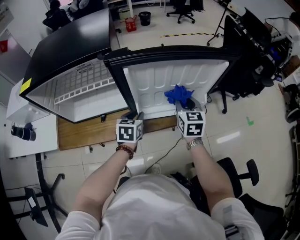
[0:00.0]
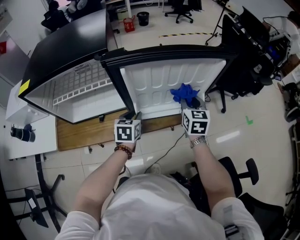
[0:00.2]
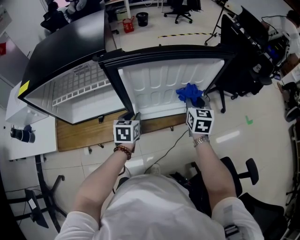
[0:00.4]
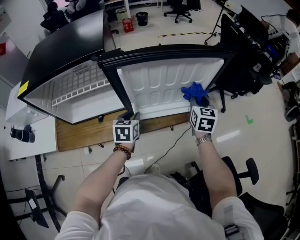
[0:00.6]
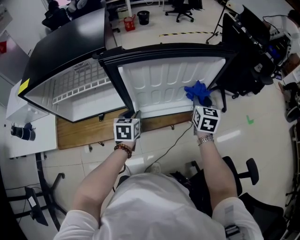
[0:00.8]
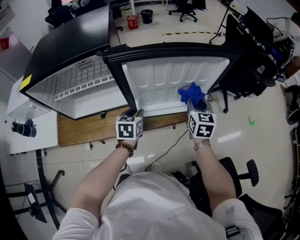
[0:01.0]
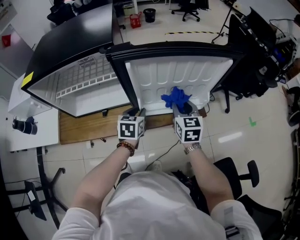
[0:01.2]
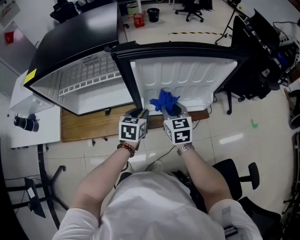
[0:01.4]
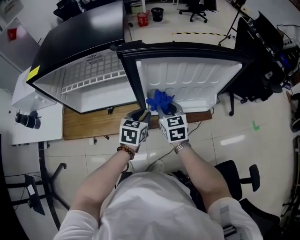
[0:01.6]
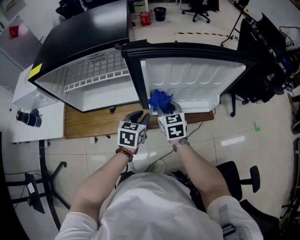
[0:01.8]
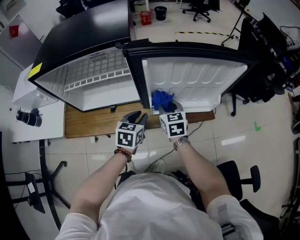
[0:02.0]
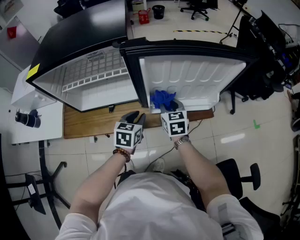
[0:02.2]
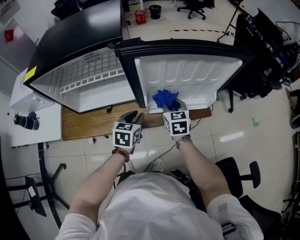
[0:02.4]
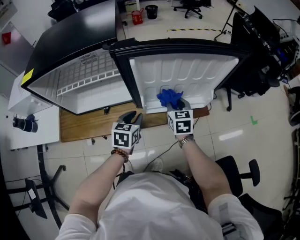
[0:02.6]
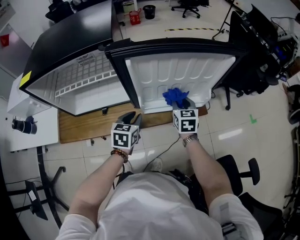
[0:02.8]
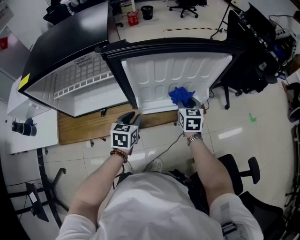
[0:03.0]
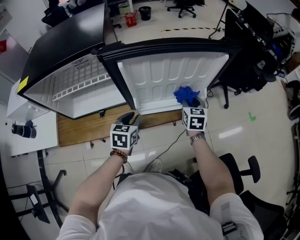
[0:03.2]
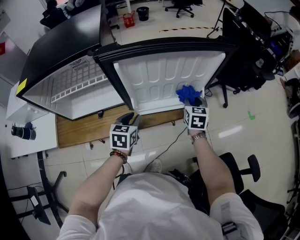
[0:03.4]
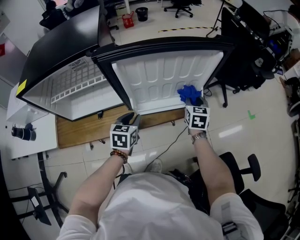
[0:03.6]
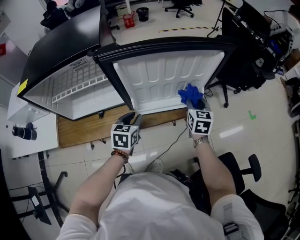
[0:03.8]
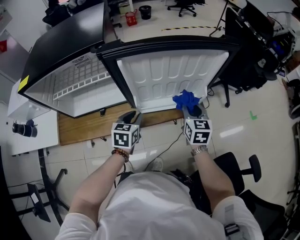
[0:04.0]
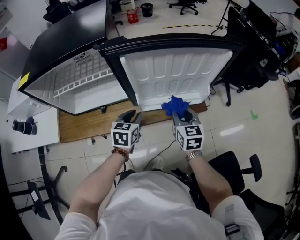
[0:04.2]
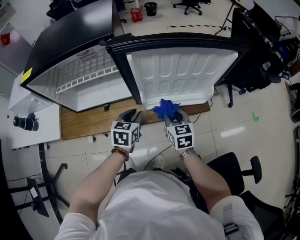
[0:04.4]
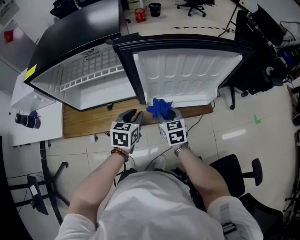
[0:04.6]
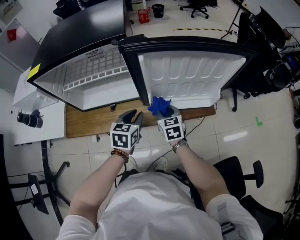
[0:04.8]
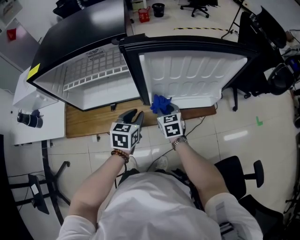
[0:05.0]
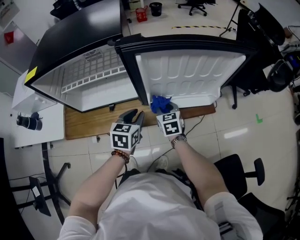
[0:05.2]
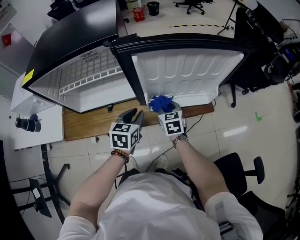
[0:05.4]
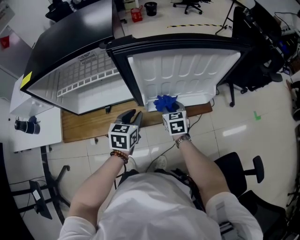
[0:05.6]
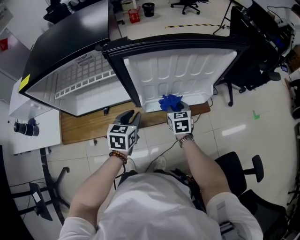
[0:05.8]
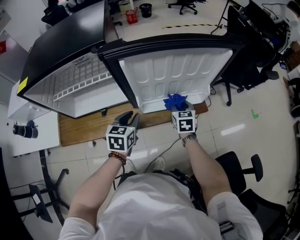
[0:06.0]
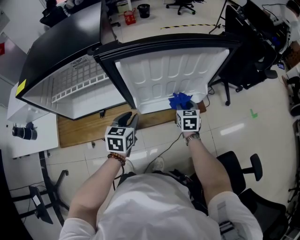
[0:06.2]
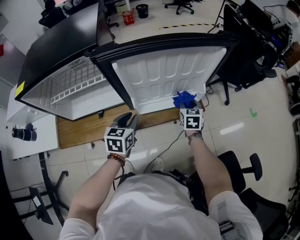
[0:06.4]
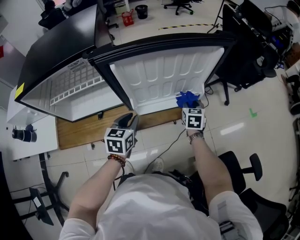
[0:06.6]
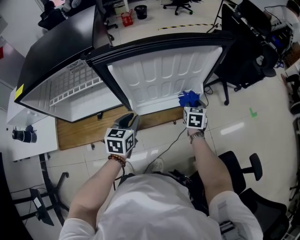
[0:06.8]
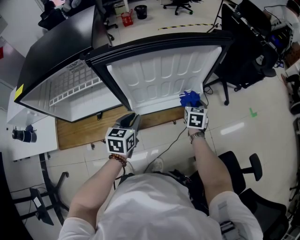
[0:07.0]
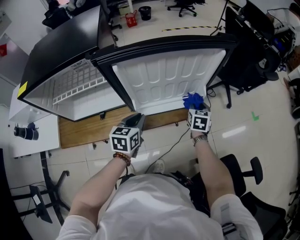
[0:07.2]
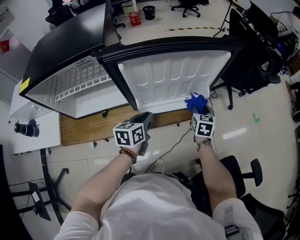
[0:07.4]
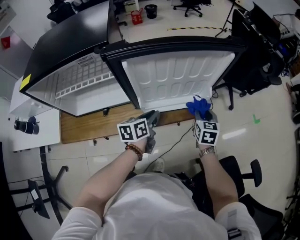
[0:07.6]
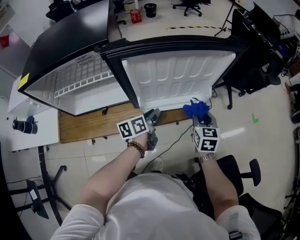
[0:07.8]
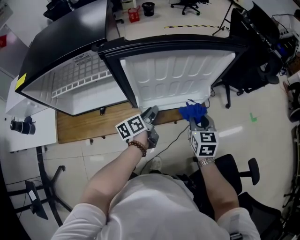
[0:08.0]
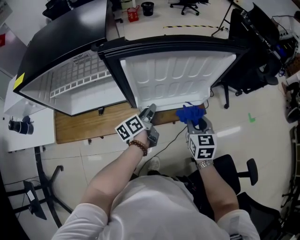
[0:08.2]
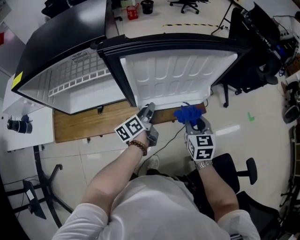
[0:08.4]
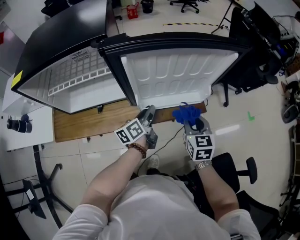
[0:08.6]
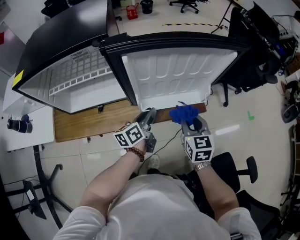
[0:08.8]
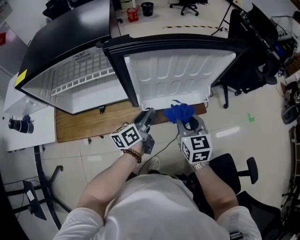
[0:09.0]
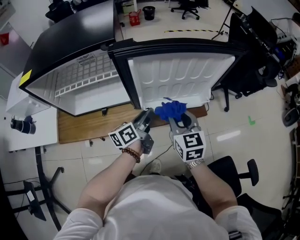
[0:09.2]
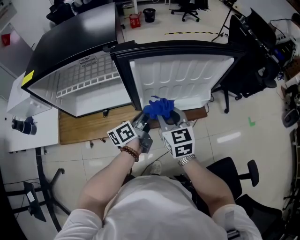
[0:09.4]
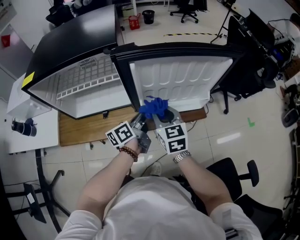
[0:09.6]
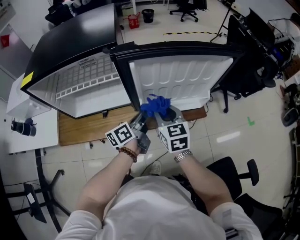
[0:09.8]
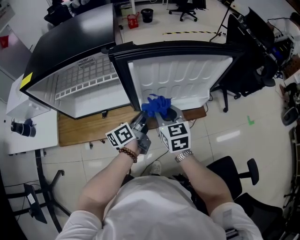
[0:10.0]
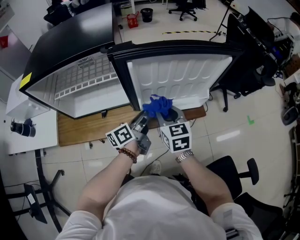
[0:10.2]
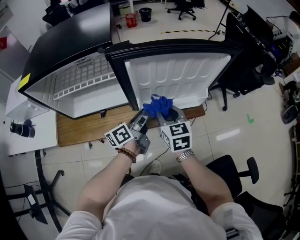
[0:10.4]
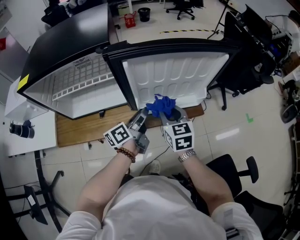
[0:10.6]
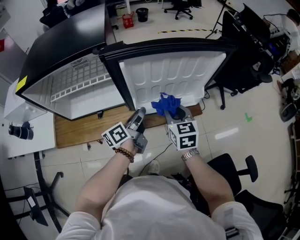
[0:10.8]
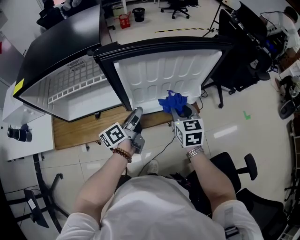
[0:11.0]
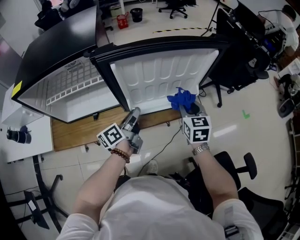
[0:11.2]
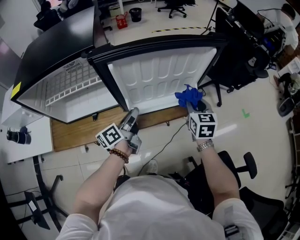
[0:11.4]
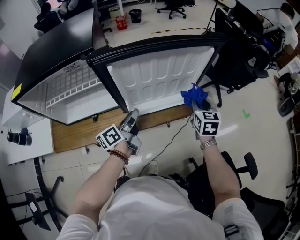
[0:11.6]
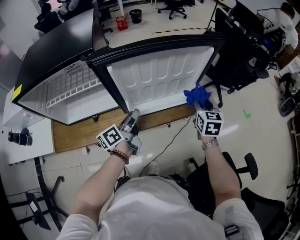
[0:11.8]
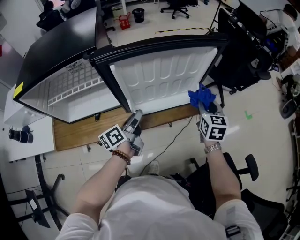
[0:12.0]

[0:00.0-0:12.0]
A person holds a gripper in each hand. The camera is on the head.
0:00.0 to 0:01.6: The right gripper travels to the left by about 10 cm.
0:01.6 to 0:03.0: The right gripper is displaced to the right by about 15 cm.
0:03.0 to 0:04.4: The right gripper travels backward and to the left by approximately 15 cm.
0:04.4 to 0:06.0: The right gripper shifts approximately 10 cm forward and to the right.
0:06.0 to 0:07.6: Both grippers travel together to the right, some 10 cm. The left gripper changes its angle by about 30 degrees.
0:07.6 to 0:09.0: The right gripper moves to the left, upward and backward, some 15 cm; the left gripper rotates approximately 20 degrees.
0:09.0 to 0:10.4: The right gripper heads to the left, covering some 10 cm.
0:10.4 to 0:12.0: The right gripper is displaced to the right by about 20 cm, and swivels some 20 degrees.

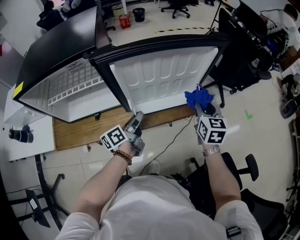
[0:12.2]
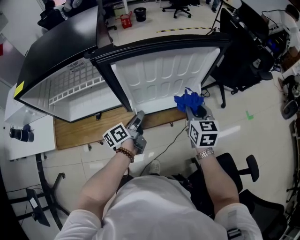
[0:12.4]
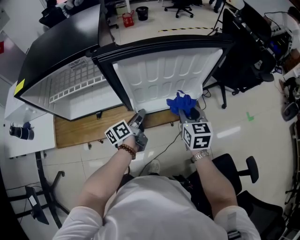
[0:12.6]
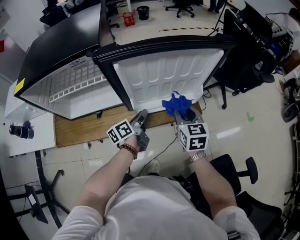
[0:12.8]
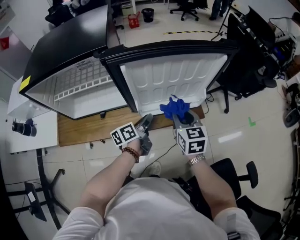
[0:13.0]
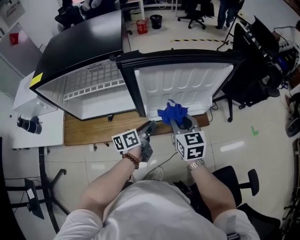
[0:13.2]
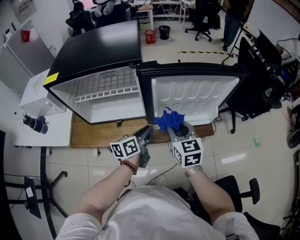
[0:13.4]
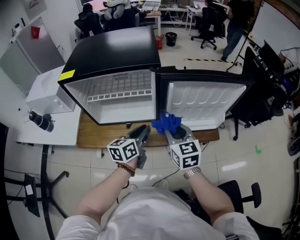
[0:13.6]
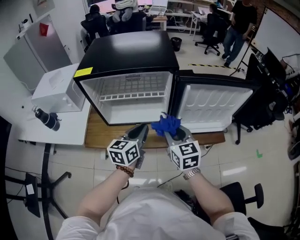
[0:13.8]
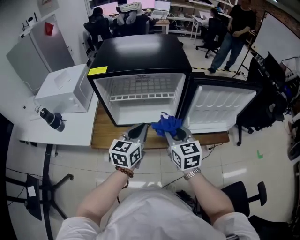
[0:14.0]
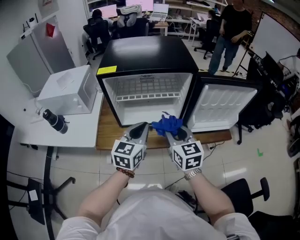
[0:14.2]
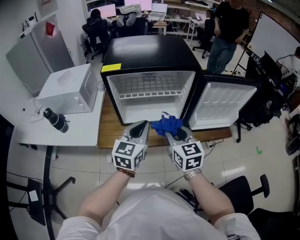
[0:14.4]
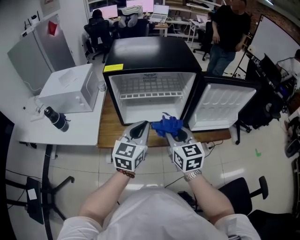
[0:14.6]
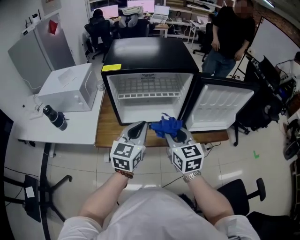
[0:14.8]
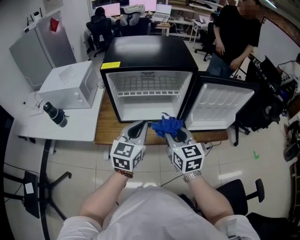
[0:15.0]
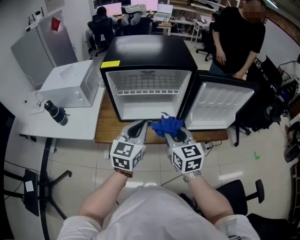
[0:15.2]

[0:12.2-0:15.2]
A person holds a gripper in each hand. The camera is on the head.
0:12.2 to 0:13.8: The right gripper travels to the left by some 35 cm, and rotates roughly 30 degrees; the left gripper shifts approximately 20 cm to the left, upward and backward, and rotates approximately 40 degrees.
0:13.8 to 0:15.2: The right gripper goes about 10 cm to the left and backward; the left gripper travels to the left, upward and backward by some 15 cm, and swivels approximately 20 degrees.

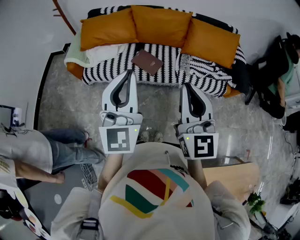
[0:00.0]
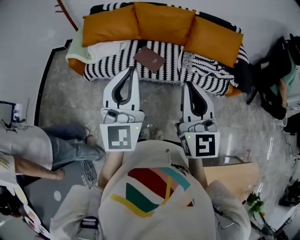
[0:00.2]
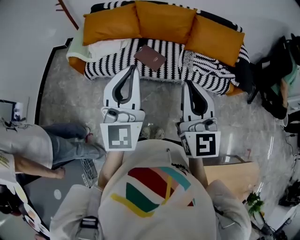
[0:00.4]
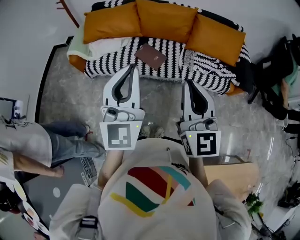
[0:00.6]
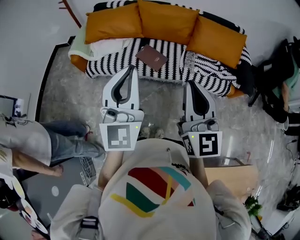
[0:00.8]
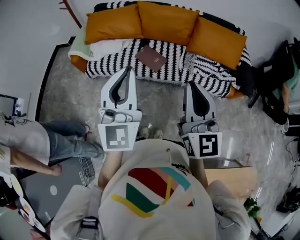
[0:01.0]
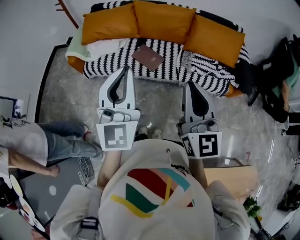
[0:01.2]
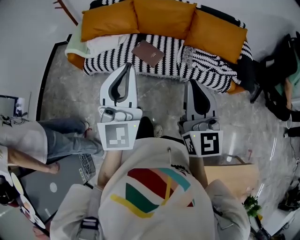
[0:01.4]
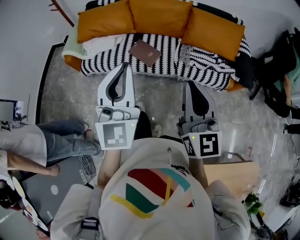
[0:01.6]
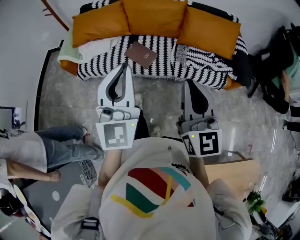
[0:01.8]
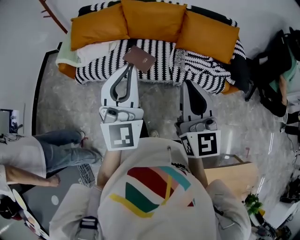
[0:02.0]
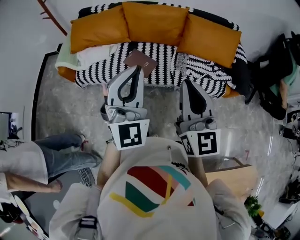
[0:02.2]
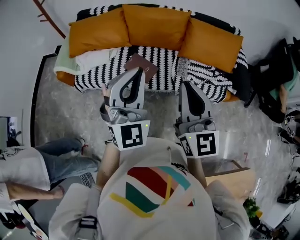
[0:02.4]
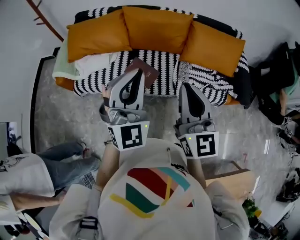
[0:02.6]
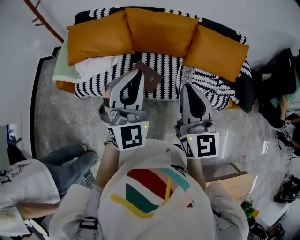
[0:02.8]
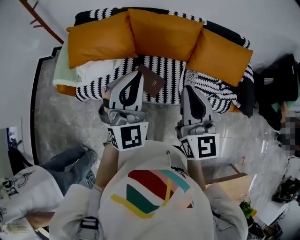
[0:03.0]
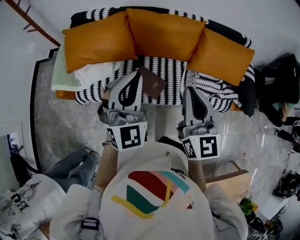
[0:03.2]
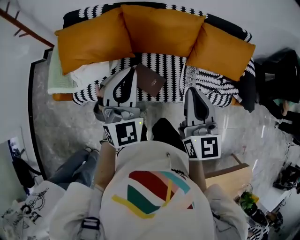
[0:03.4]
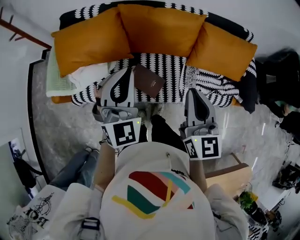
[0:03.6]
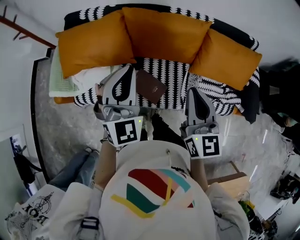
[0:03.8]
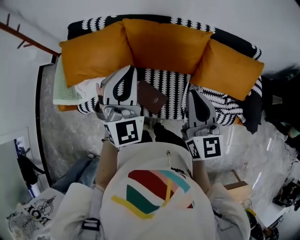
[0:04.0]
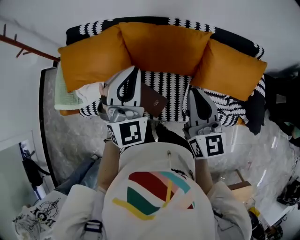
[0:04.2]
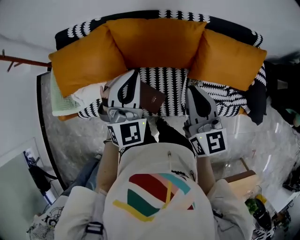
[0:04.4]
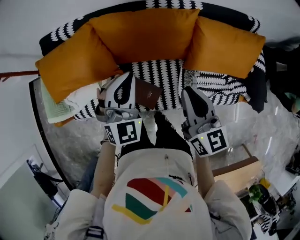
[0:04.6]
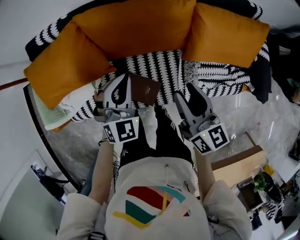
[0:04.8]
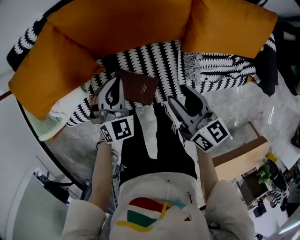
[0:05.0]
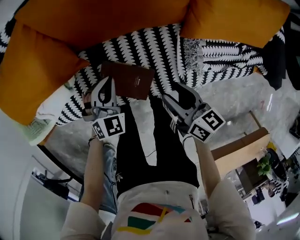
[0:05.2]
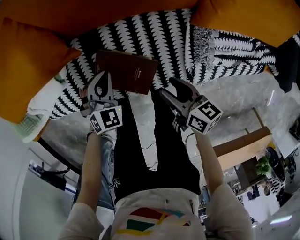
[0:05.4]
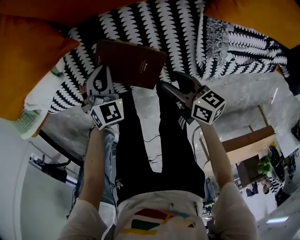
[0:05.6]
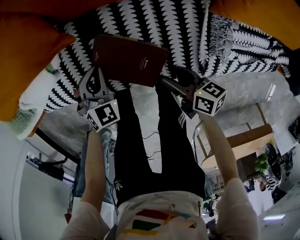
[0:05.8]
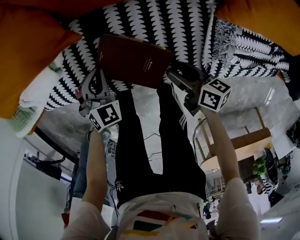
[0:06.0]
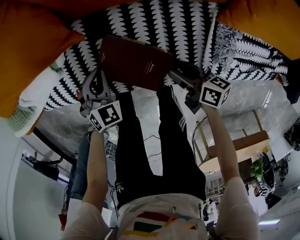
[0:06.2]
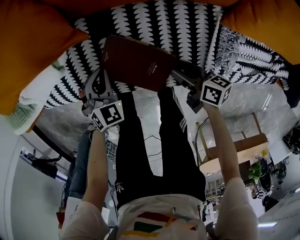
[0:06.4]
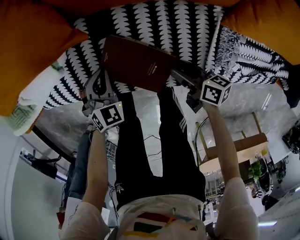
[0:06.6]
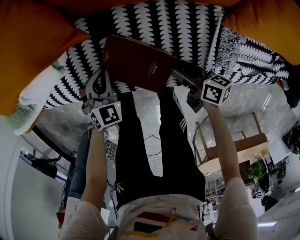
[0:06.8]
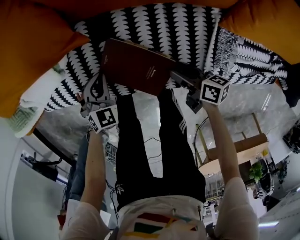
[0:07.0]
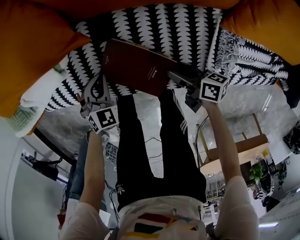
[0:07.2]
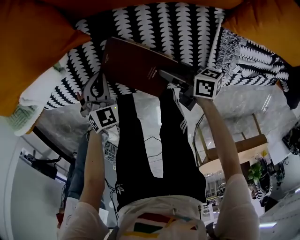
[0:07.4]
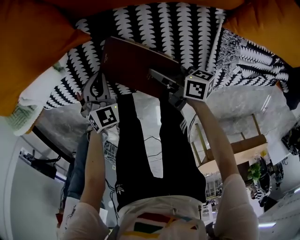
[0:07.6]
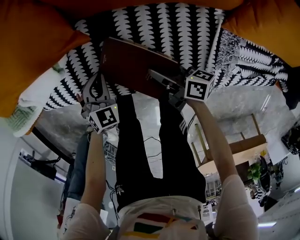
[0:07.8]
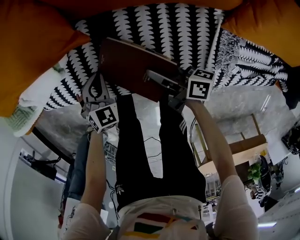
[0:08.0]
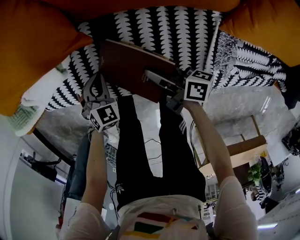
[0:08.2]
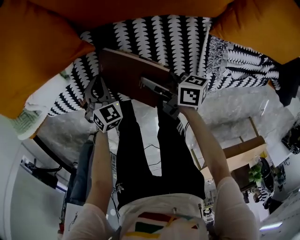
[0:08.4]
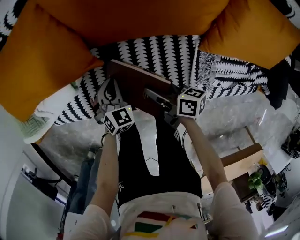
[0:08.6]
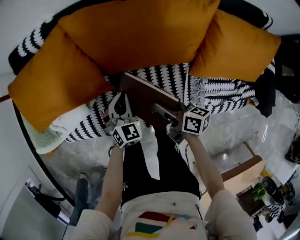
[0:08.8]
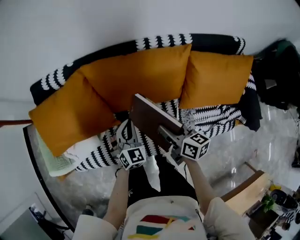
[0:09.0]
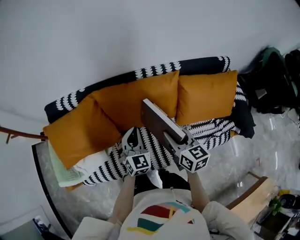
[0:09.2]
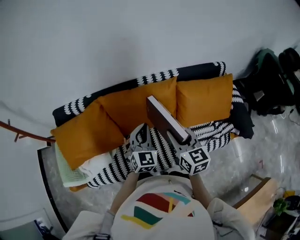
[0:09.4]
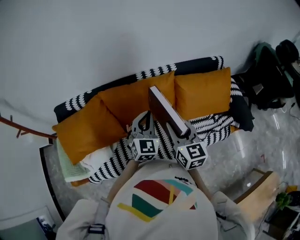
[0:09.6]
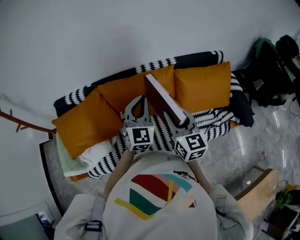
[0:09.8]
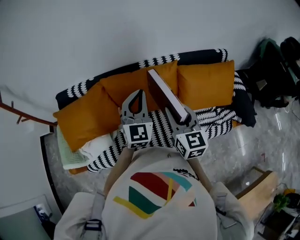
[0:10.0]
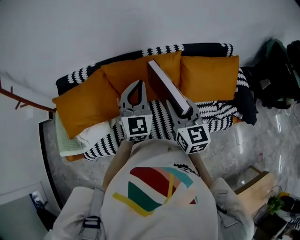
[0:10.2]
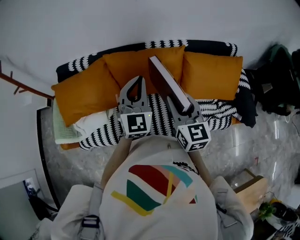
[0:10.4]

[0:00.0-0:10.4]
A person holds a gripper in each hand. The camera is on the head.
0:00.0 to 0:01.4: The right gripper is displaced to the right by about 5 cm.
0:01.4 to 0:03.0: Both grippers travel together forward, approximately 30 cm. The left gripper changes its angle by roughly 20 degrees.
0:03.0 to 0:04.4: The two grippers go roughly 25 cm forward.
0:04.4 to 0:06.0: Both grippers move downward, some 50 cm. The right gripper changes its angle by about 60 degrees, and opens. The left gripper points its fingers about 40 degrees further downward.
0:06.0 to 0:07.4: The right gripper changes place by approximately 5 cm.
0:07.4 to 0:09.0: The left gripper is displaced upward and to the right by approximately 30 cm, and turns by approximately 20 degrees. The right gripper heads upward, covering approximately 35 cm, and changes its angle by about 30 degrees.
0:09.0 to 0:10.4: Both grippers move upward, about 25 cm. The left gripper turns by some 30 degrees. The right gripper rotates some 40 degrees.
